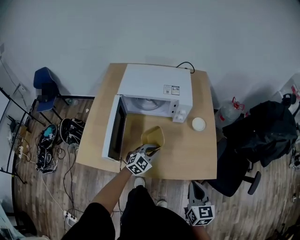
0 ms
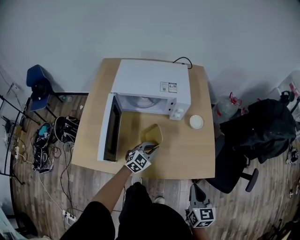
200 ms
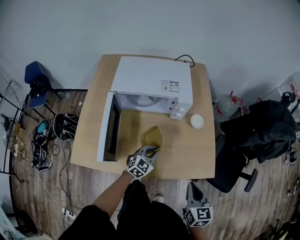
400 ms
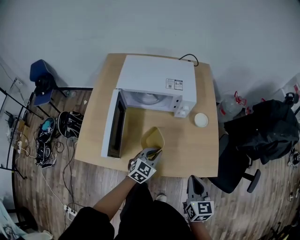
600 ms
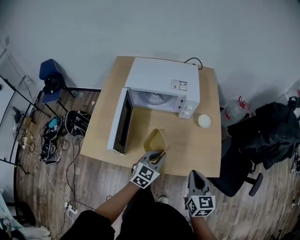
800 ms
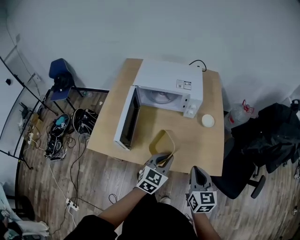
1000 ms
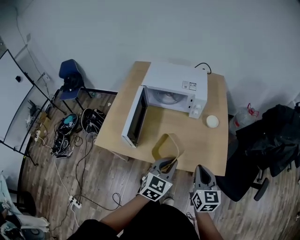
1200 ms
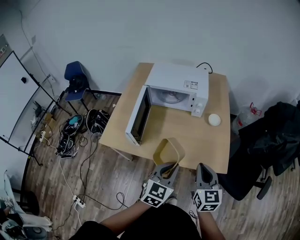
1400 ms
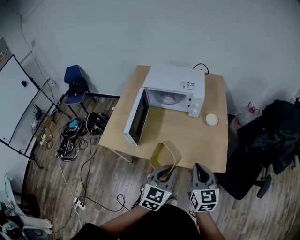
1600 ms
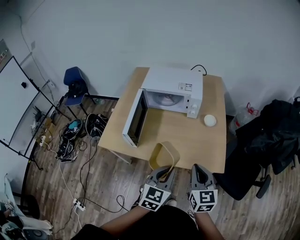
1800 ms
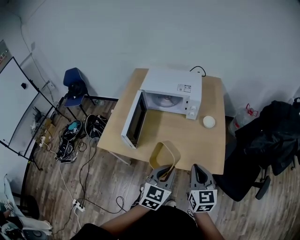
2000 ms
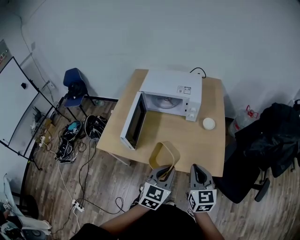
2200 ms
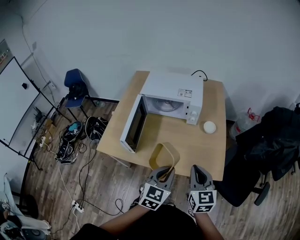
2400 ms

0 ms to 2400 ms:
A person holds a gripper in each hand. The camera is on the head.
0 ms to 1200 ms: The left gripper shifts approximately 20 cm upward and backward, and swivels roughly 30 degrees.

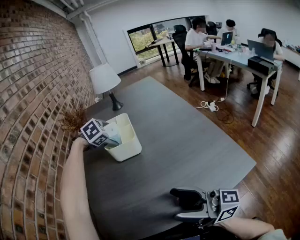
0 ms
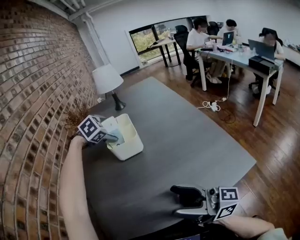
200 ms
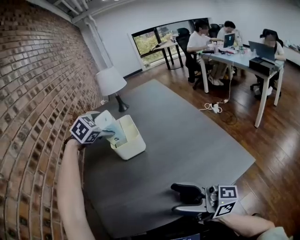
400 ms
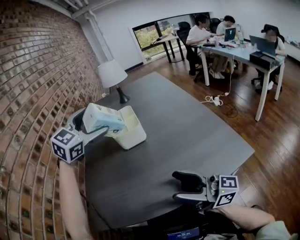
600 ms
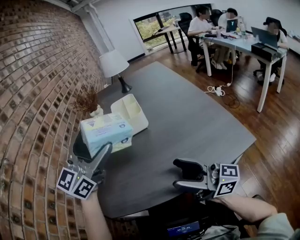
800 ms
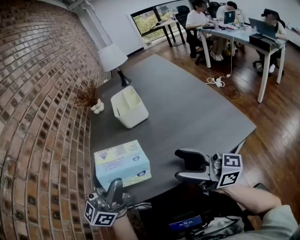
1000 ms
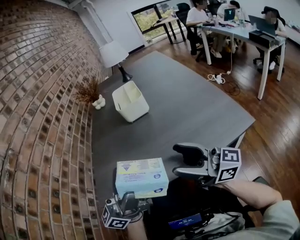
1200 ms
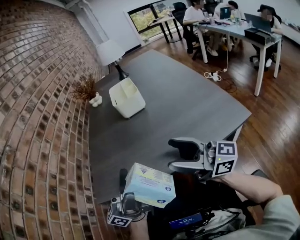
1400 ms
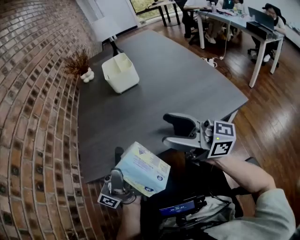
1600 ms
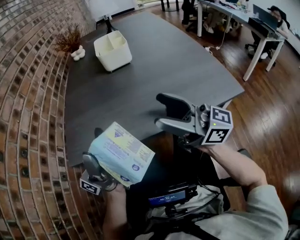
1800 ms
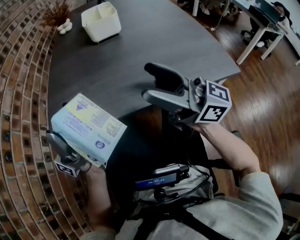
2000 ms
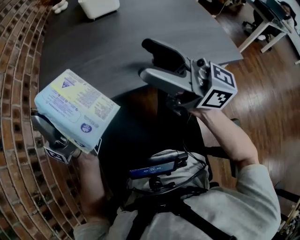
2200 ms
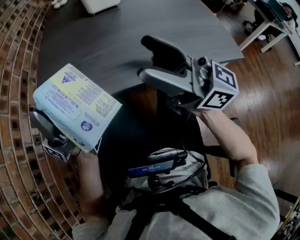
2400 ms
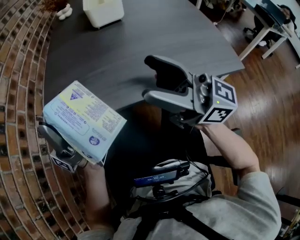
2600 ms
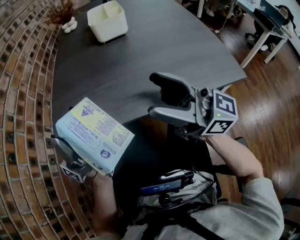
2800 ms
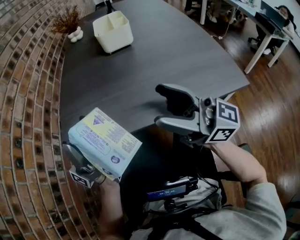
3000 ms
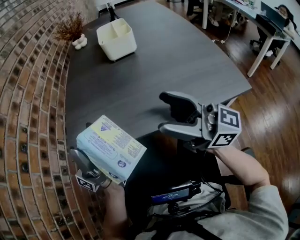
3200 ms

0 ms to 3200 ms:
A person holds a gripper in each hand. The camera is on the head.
0 ms to 1600 ms: The left gripper moves backward, roughly 50 cm, and tilts its fingers roughly 110 degrees upward.
1600 ms to 3200 ms: The left gripper shifts some 5 cm to the left, and swivels about 20 degrees.

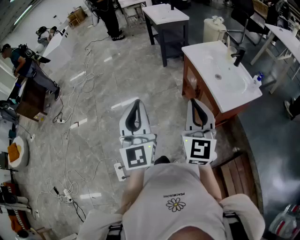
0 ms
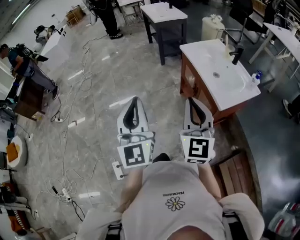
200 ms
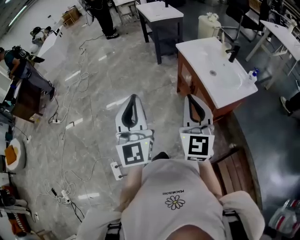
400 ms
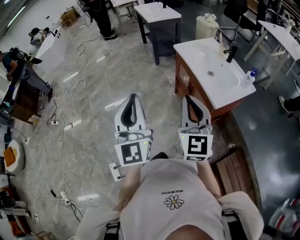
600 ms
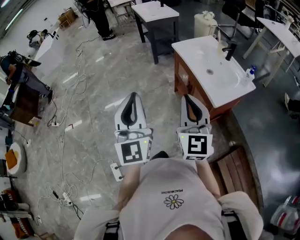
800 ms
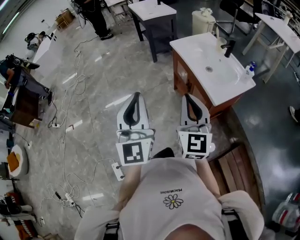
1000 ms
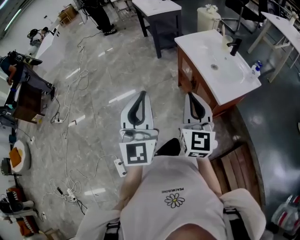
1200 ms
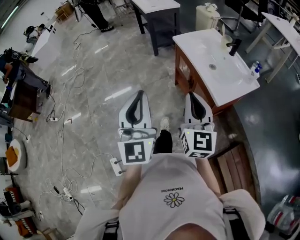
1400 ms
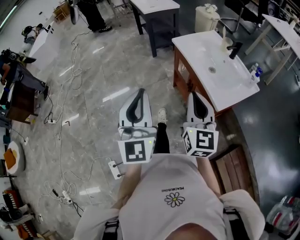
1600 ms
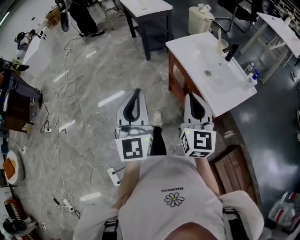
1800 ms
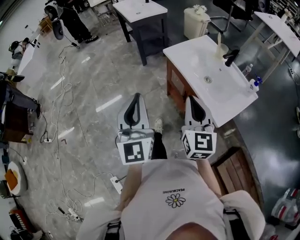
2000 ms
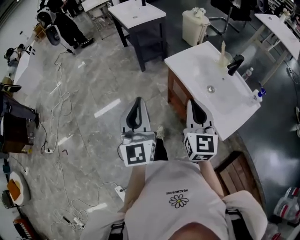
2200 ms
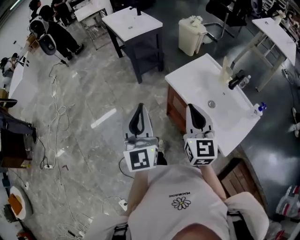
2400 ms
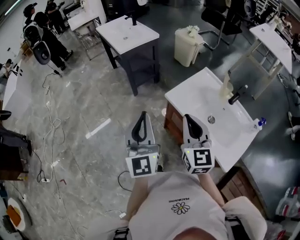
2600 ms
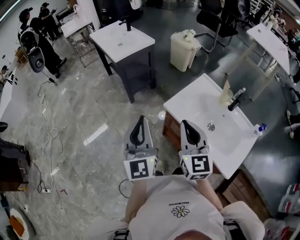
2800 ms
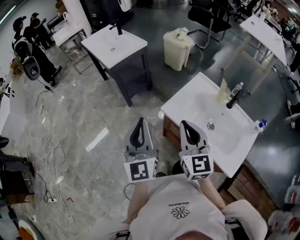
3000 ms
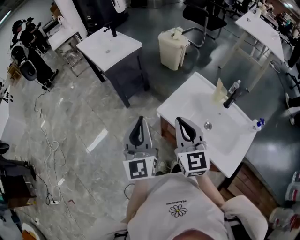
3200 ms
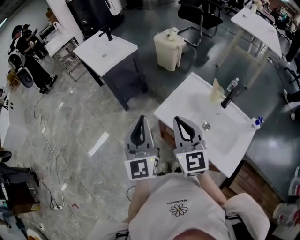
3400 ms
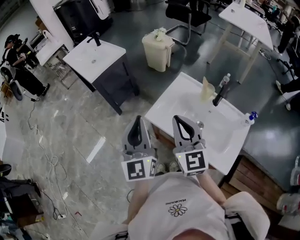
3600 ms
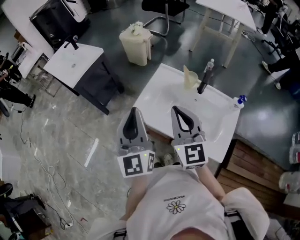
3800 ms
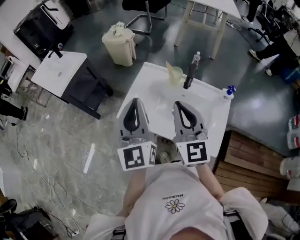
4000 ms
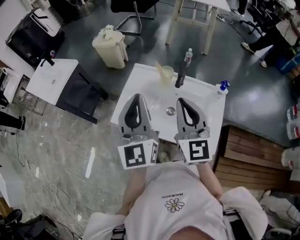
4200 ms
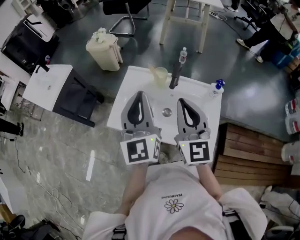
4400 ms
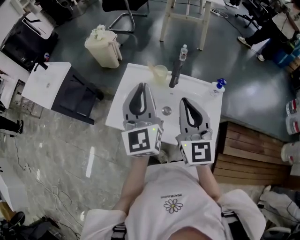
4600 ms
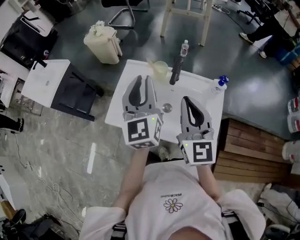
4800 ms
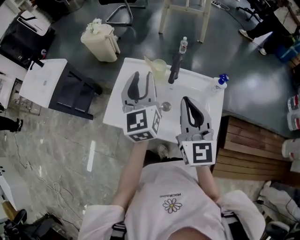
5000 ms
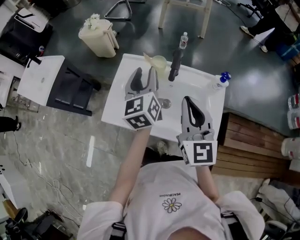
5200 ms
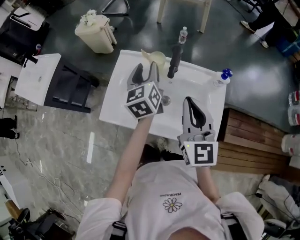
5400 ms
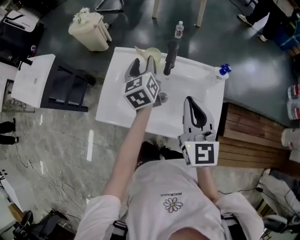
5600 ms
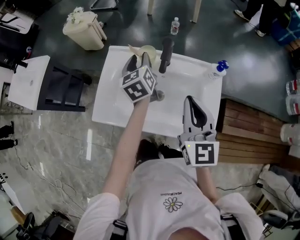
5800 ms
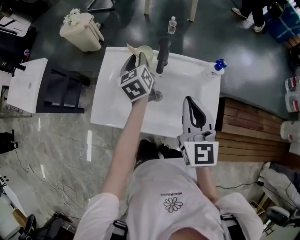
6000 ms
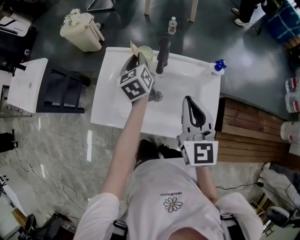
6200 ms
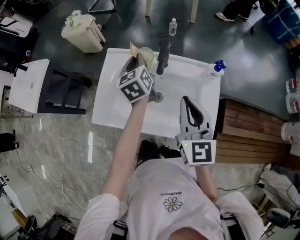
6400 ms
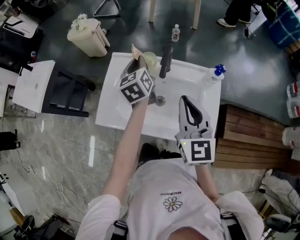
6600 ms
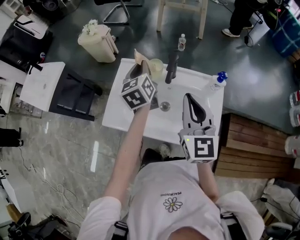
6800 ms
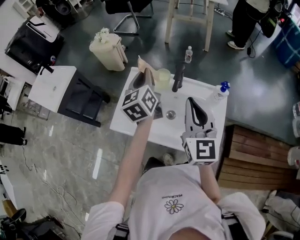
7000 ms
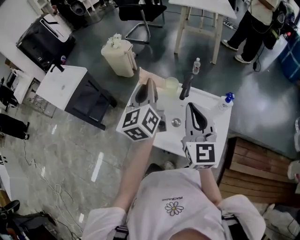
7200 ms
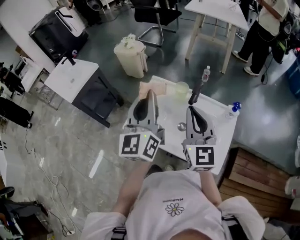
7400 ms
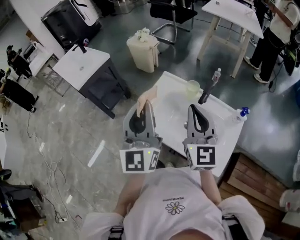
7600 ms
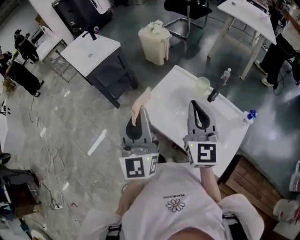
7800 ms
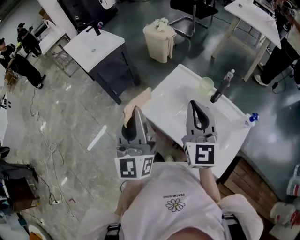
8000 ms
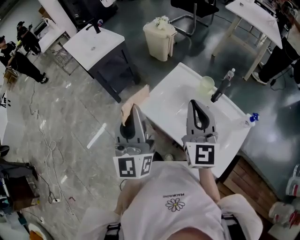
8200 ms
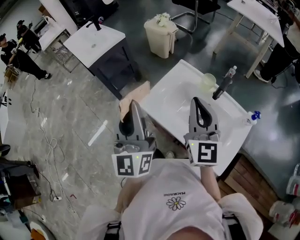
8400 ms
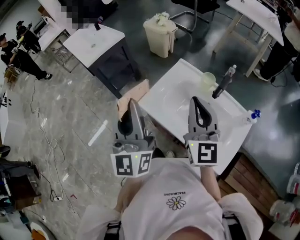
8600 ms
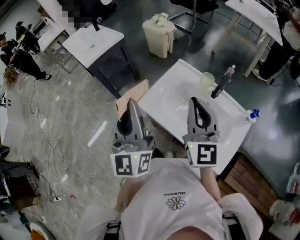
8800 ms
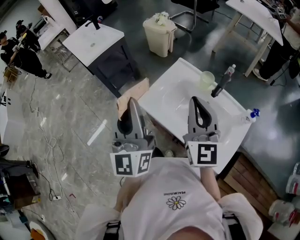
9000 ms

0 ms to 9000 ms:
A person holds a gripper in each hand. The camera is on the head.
0 ms to 1600 ms: Both grippers move forward, roughly 10 cm.
1600 ms to 3000 ms: Both grippers are carried forward, approximately 40 cm.
3000 ms to 4400 ms: The right gripper shifts by about 25 cm, and turns by about 30 degrees; the left gripper ends up some 30 cm from where it was, and rotates roughly 30 degrees.
4400 ms to 6000 ms: The right gripper goes some 10 cm downward and to the right; the left gripper shifts about 30 cm forward and downward, points its fingers roughly 30 degrees further downward, and opens its fingers.
6000 ms to 7600 ms: The right gripper shifts roughly 15 cm to the left and upward, and swivels about 30 degrees; the left gripper goes some 35 cm backward, upward and to the left, angles its fingers upward, by some 40 degrees, and closes.
7600 ms to 9000 ms: The left gripper heads to the left, covering approximately 10 cm.

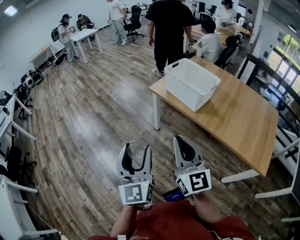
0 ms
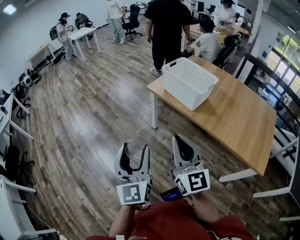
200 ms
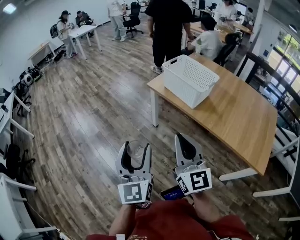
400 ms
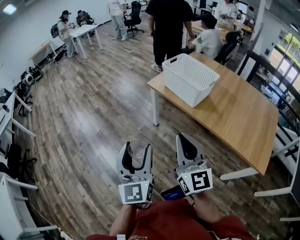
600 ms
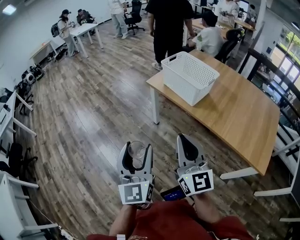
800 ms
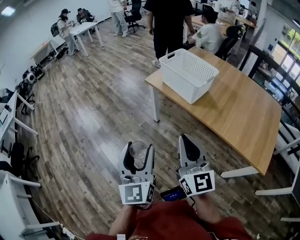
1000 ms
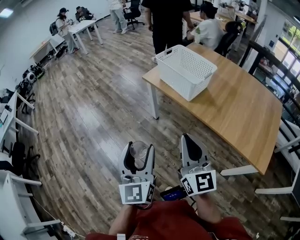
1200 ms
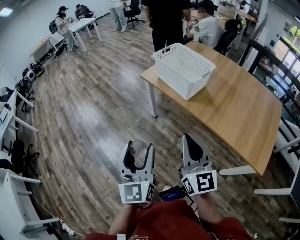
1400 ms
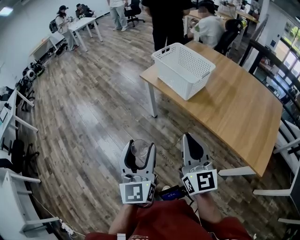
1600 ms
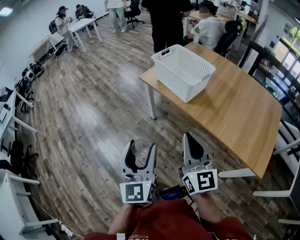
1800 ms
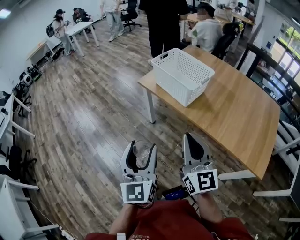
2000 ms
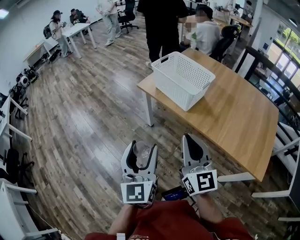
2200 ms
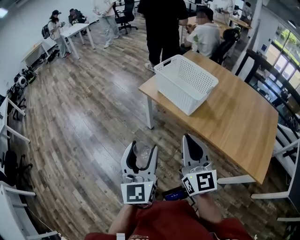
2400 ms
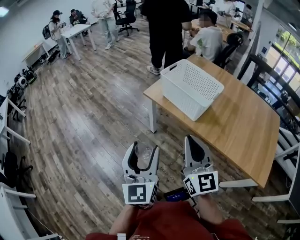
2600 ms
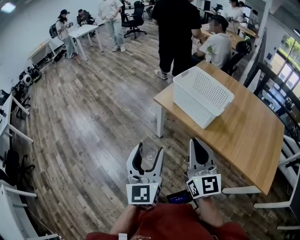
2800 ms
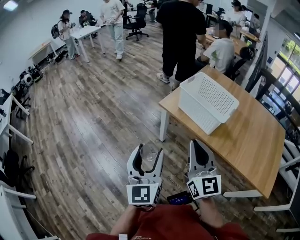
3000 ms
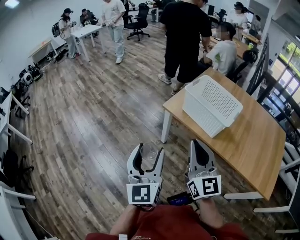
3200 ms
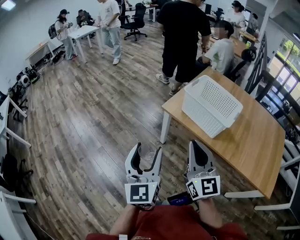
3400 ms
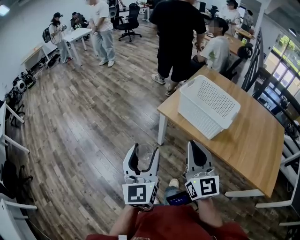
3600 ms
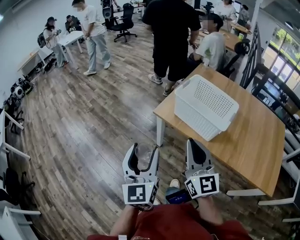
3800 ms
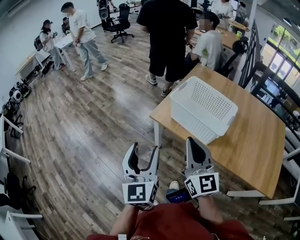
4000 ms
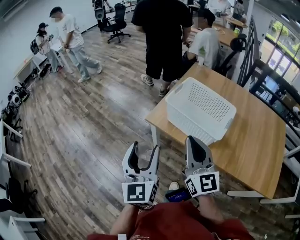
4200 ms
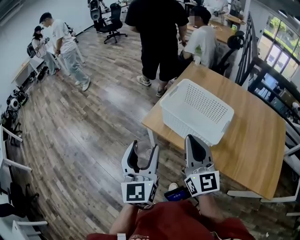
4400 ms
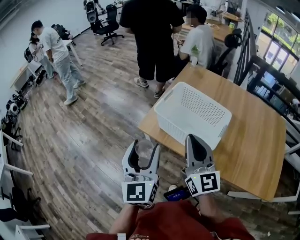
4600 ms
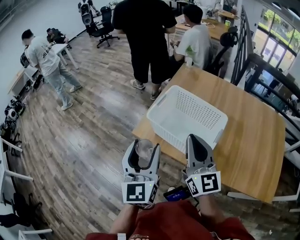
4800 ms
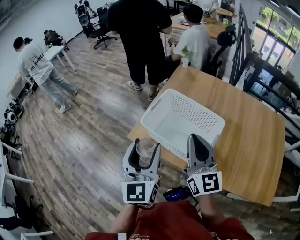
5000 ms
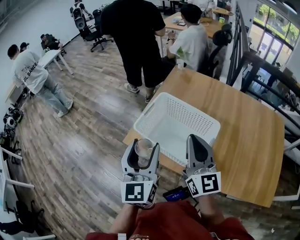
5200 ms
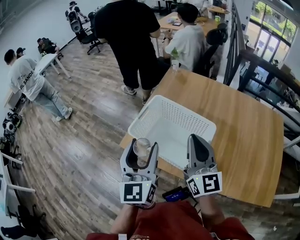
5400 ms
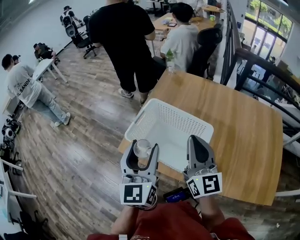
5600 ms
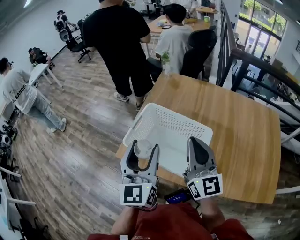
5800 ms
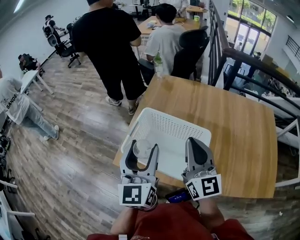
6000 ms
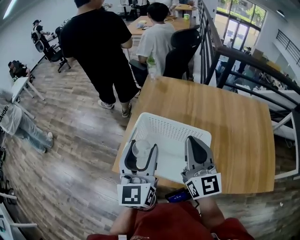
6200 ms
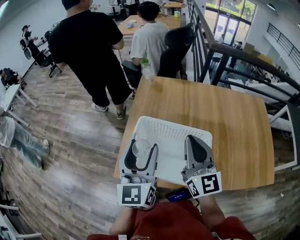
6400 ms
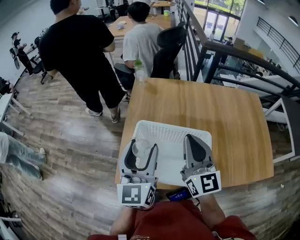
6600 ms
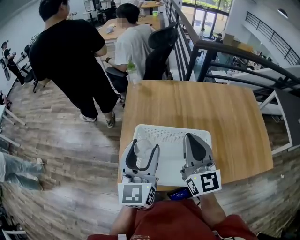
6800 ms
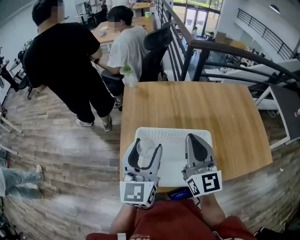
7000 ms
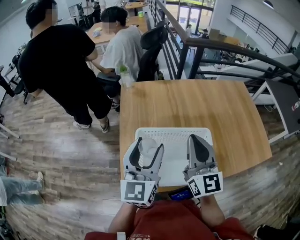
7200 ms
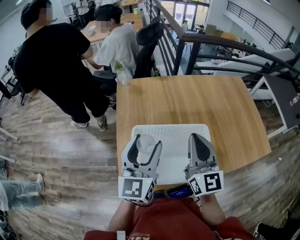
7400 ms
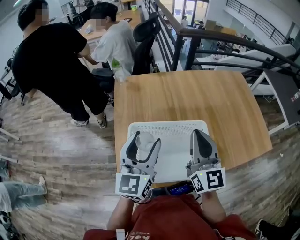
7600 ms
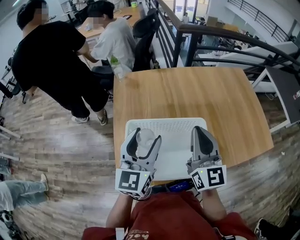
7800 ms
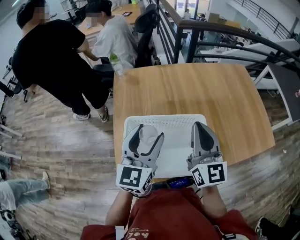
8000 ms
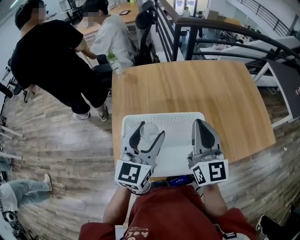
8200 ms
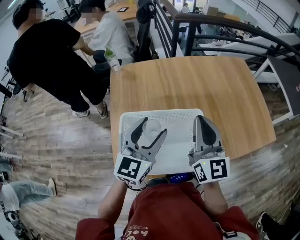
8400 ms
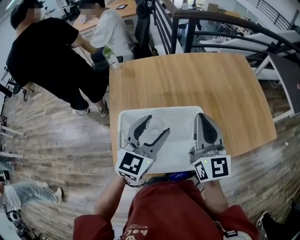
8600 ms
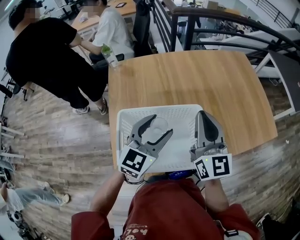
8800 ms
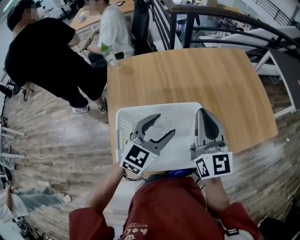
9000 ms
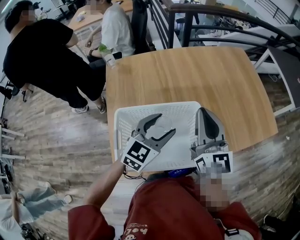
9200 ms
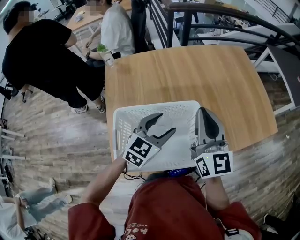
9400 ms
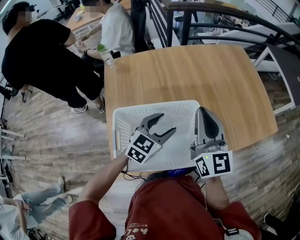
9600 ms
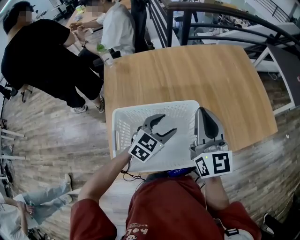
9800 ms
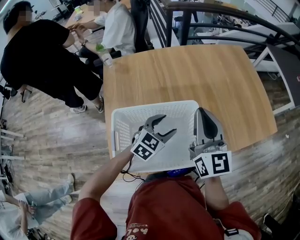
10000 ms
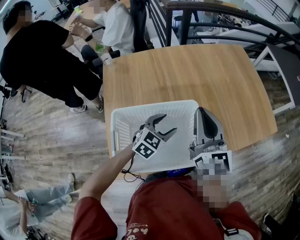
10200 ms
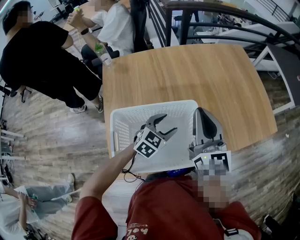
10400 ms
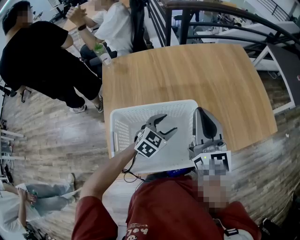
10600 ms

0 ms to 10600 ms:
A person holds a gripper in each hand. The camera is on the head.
0 ms to 1600 ms: Both grippers travel together to the right, about 10 cm.
1600 ms to 3000 ms: The grippers both shift forward and to the left by some 20 cm.
3000 ms to 4600 ms: The grippers both shift forward and to the right by approximately 25 cm.
4600 ms to 6000 ms: The grippers both shift forward and to the right by about 20 cm.
6000 ms to 7600 ms: The right gripper turns by roughly 30 degrees, while the left gripper moves approximately 10 cm, and turns by roughly 40 degrees.
7600 ms to 9000 ms: The right gripper goes approximately 5 cm to the right, while the left gripper moves to the right and downward, roughly 15 cm, and turns by roughly 30 degrees.
9000 ms to 10600 ms: The left gripper is displaced downward by approximately 15 cm.
